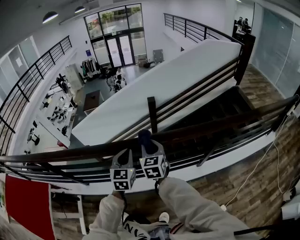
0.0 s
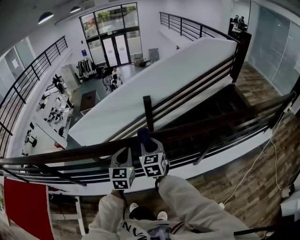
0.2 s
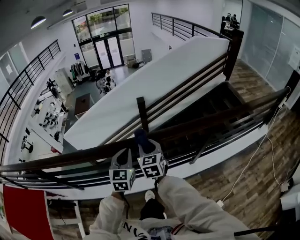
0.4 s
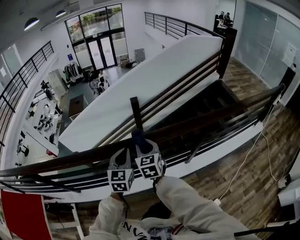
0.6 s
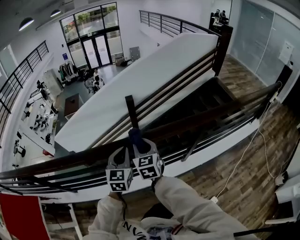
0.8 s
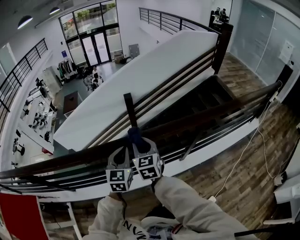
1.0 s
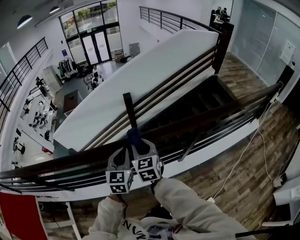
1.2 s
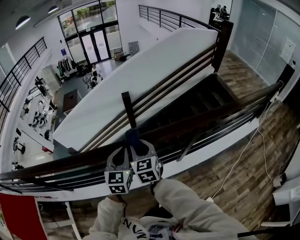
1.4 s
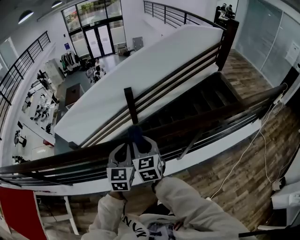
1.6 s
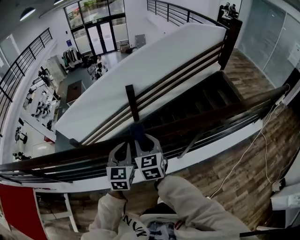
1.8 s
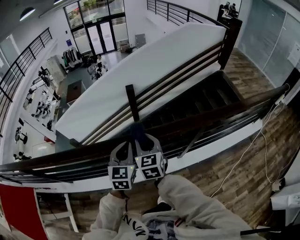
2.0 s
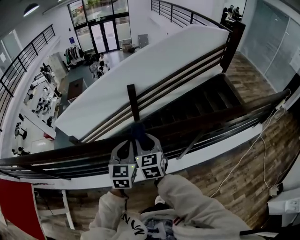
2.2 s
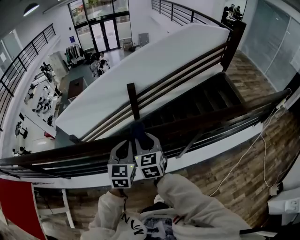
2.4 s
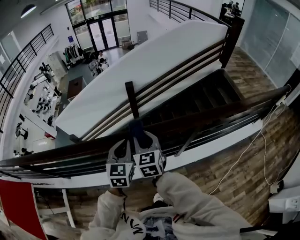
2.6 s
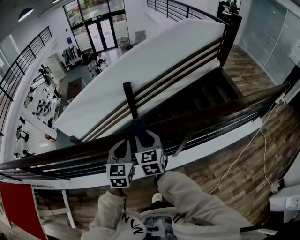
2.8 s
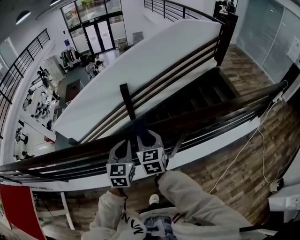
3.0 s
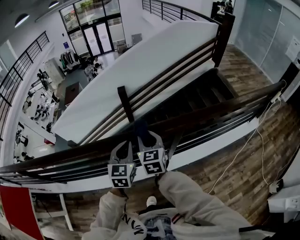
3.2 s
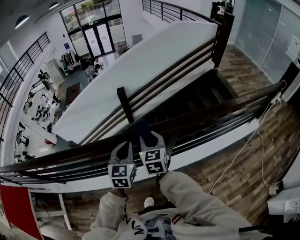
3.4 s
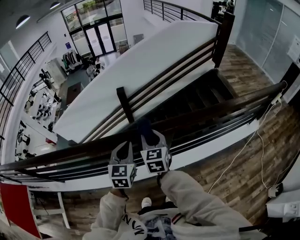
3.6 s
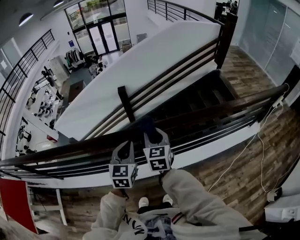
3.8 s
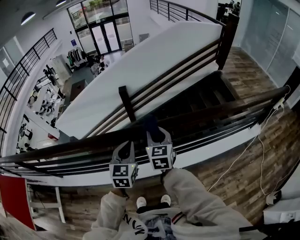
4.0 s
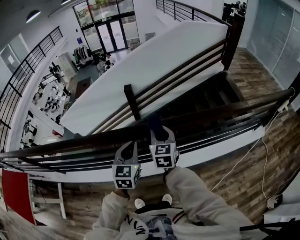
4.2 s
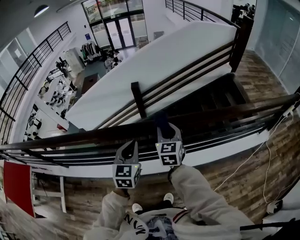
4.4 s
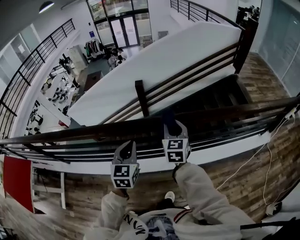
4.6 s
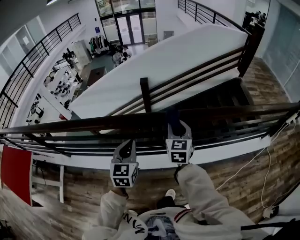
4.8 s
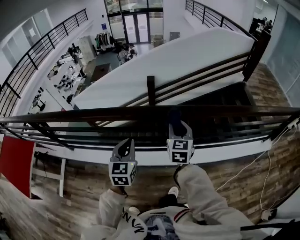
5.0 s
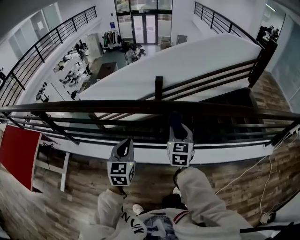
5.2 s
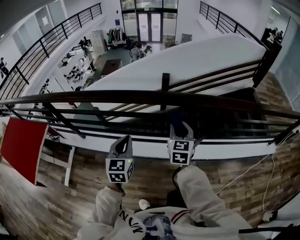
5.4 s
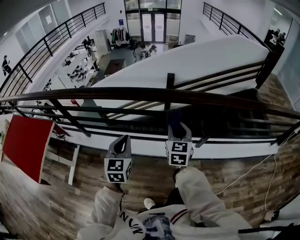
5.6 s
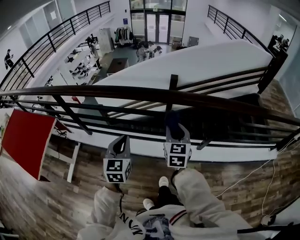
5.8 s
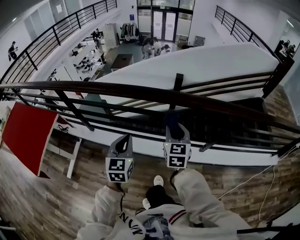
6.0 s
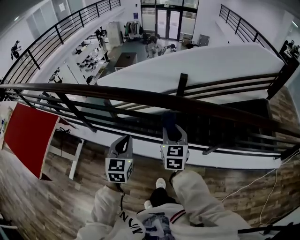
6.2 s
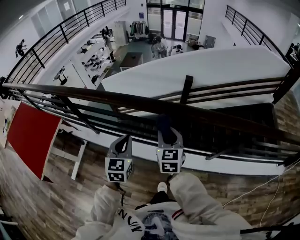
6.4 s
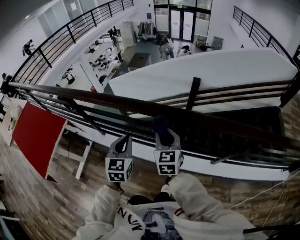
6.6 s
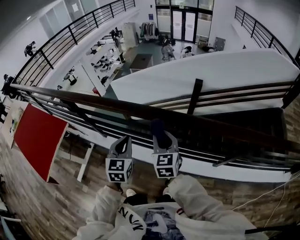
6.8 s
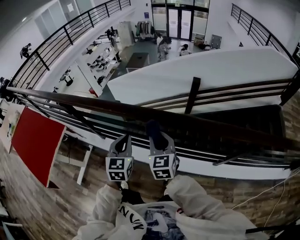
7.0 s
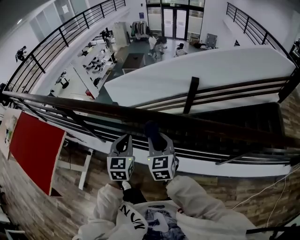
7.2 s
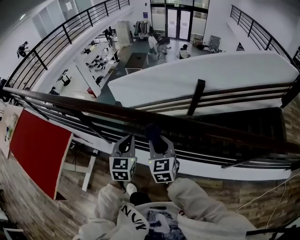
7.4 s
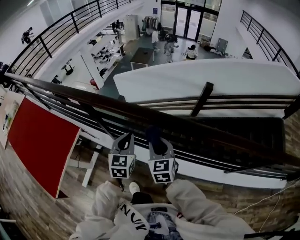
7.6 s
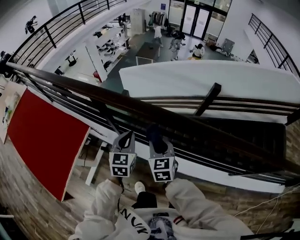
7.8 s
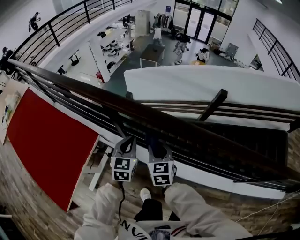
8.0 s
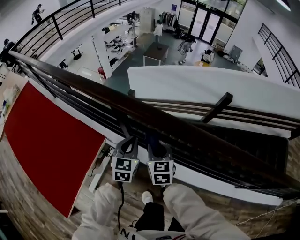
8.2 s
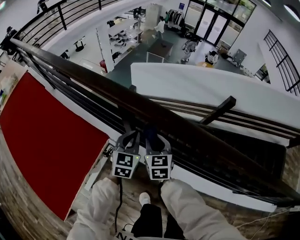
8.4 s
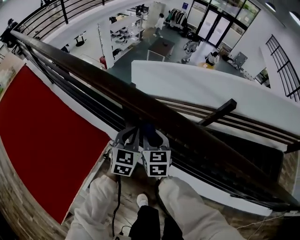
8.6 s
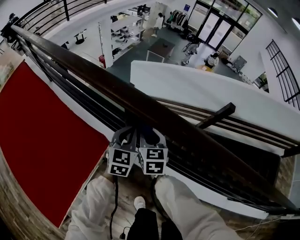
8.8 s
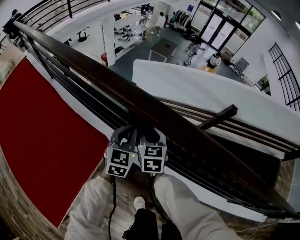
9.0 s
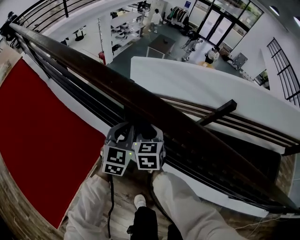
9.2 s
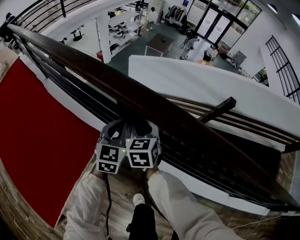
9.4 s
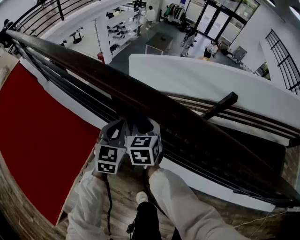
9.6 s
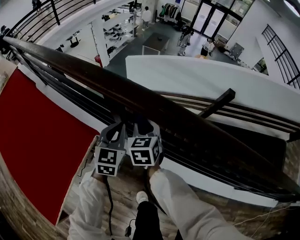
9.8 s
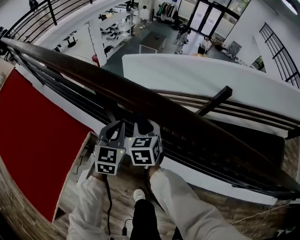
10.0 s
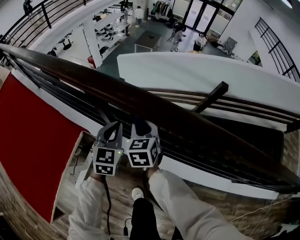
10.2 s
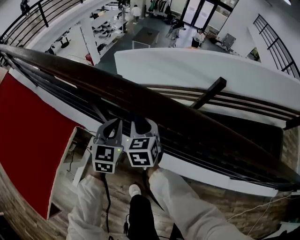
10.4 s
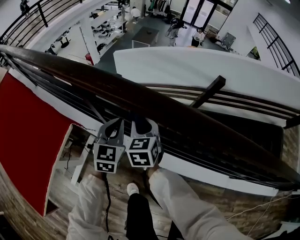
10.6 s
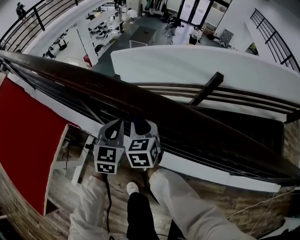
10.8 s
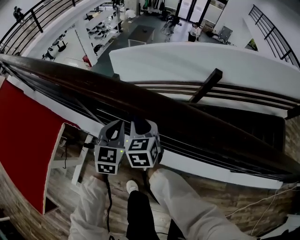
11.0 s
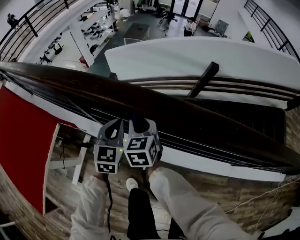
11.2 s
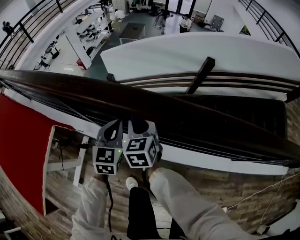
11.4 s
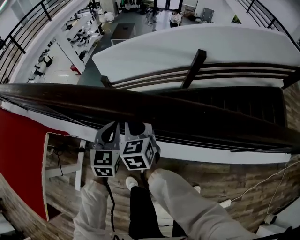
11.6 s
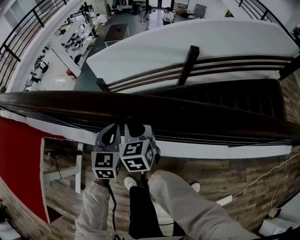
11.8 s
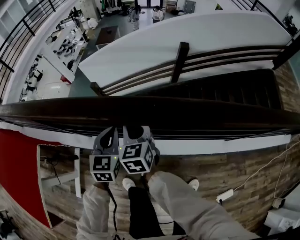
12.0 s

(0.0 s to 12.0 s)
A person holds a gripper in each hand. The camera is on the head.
0.0 s - 1.6 s: The two grippers go approximately 15 cm to the right.
1.6 s - 3.0 s: Both grippers move to the right, some 10 cm.
3.0 s - 4.4 s: The grippers both shift to the right by roughly 15 cm.
4.4 s - 6.0 s: The pair of grippers is taken to the left and backward, about 50 cm.
6.0 s - 7.6 s: The grippers both shift to the left and forward by some 35 cm. The right gripper changes its angle by roughly 20 degrees.
7.6 s - 9.0 s: Both grippers travel together to the left, forward and downward, roughly 40 cm.
9.0 s - 10.4 s: Both grippers move to the right and backward, roughly 15 cm.
10.4 s - 12.0 s: Both grippers move to the right, about 30 cm.

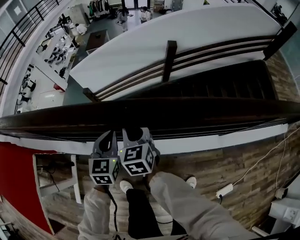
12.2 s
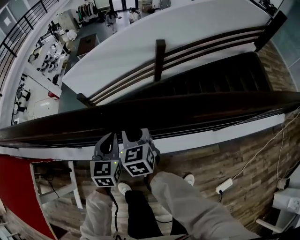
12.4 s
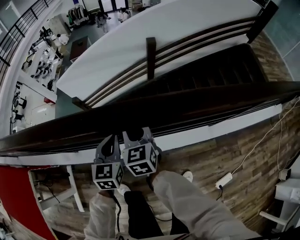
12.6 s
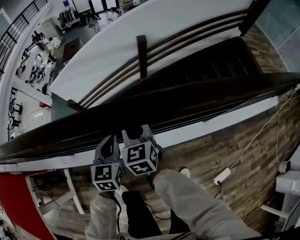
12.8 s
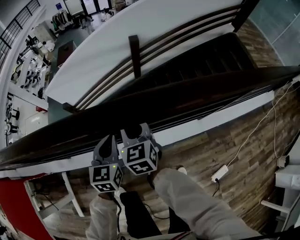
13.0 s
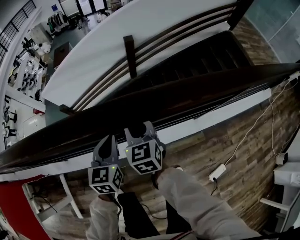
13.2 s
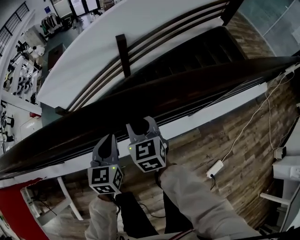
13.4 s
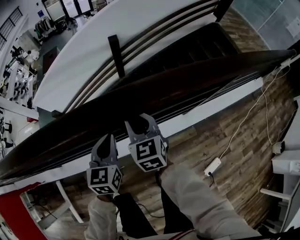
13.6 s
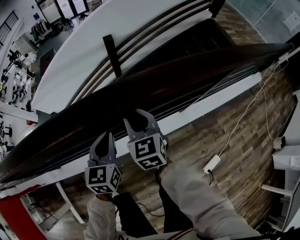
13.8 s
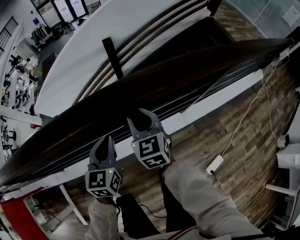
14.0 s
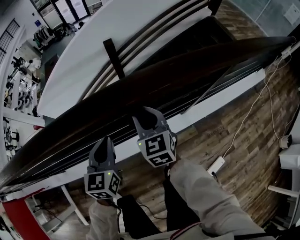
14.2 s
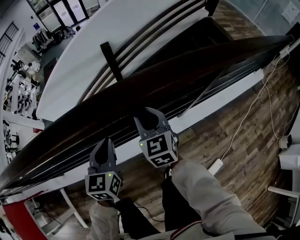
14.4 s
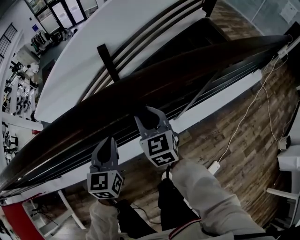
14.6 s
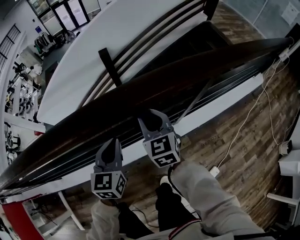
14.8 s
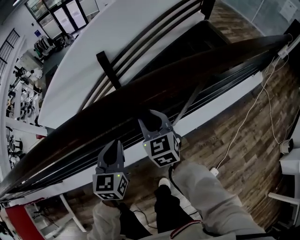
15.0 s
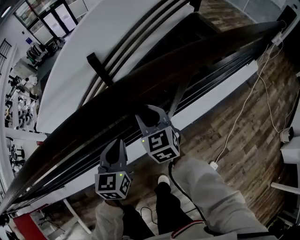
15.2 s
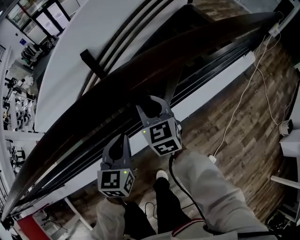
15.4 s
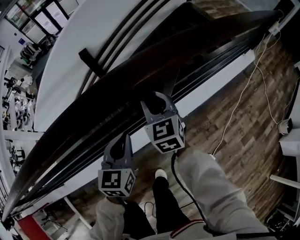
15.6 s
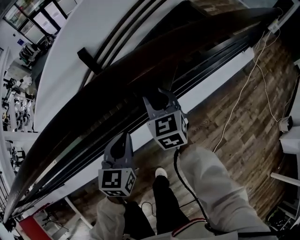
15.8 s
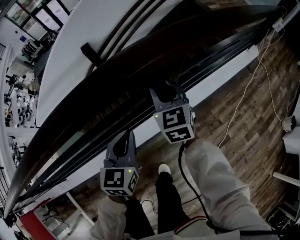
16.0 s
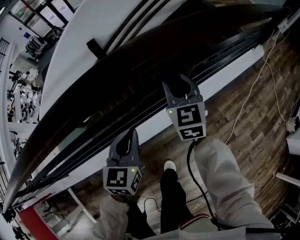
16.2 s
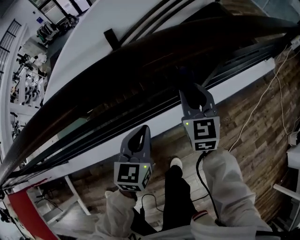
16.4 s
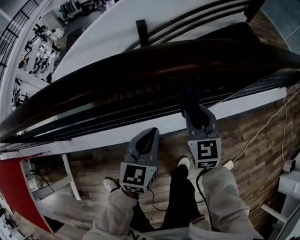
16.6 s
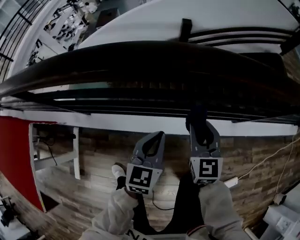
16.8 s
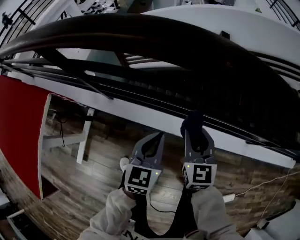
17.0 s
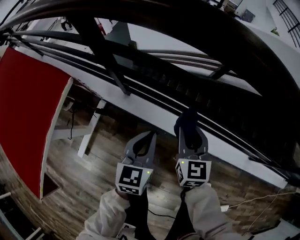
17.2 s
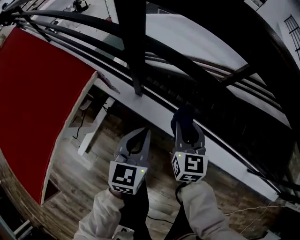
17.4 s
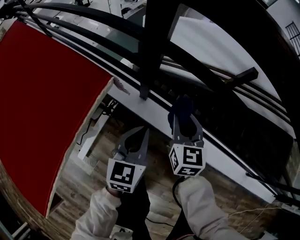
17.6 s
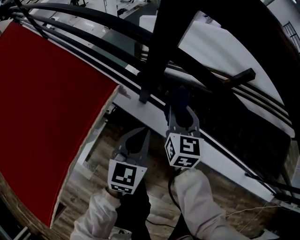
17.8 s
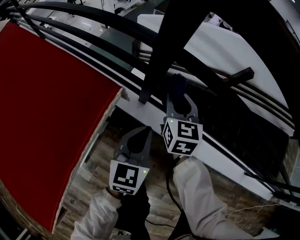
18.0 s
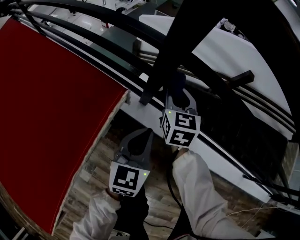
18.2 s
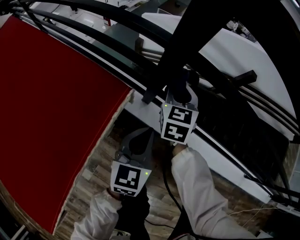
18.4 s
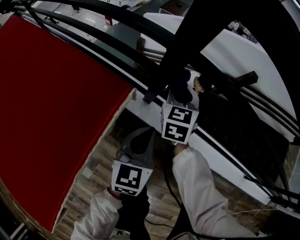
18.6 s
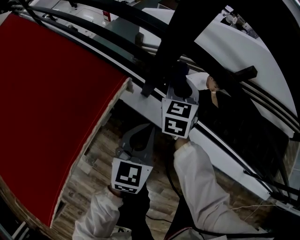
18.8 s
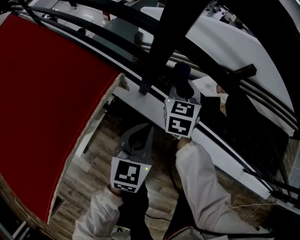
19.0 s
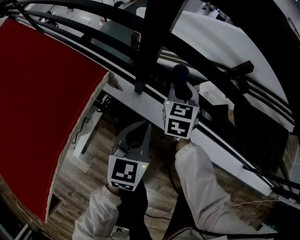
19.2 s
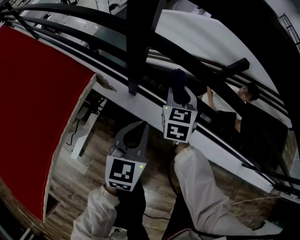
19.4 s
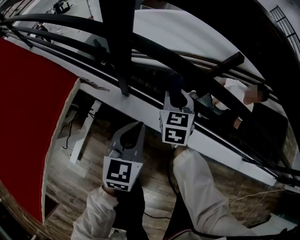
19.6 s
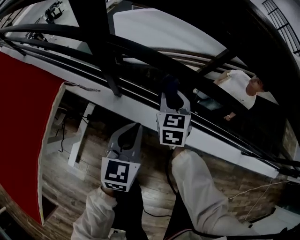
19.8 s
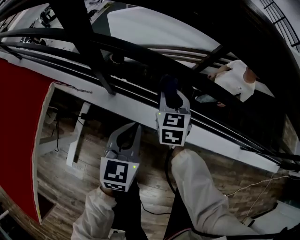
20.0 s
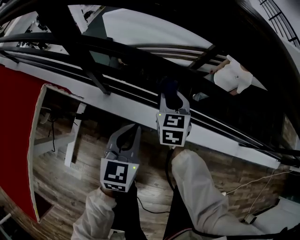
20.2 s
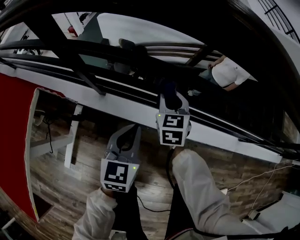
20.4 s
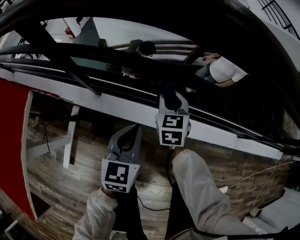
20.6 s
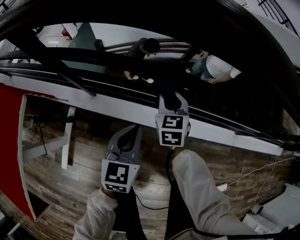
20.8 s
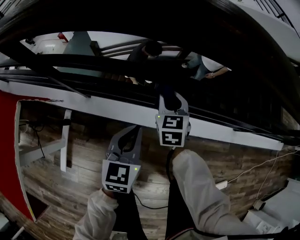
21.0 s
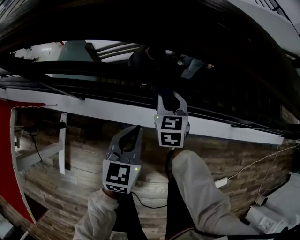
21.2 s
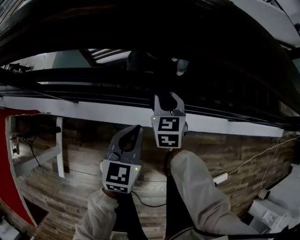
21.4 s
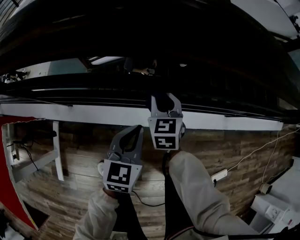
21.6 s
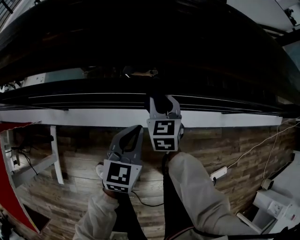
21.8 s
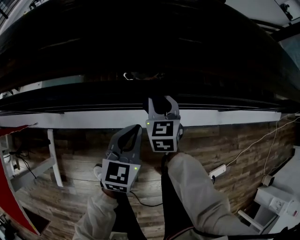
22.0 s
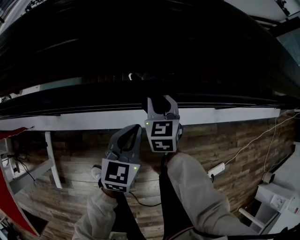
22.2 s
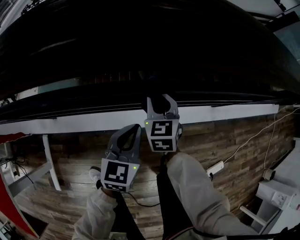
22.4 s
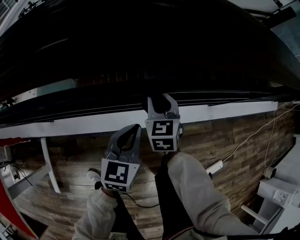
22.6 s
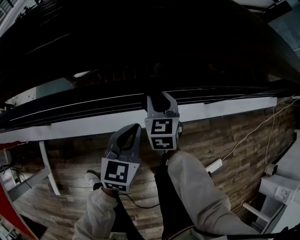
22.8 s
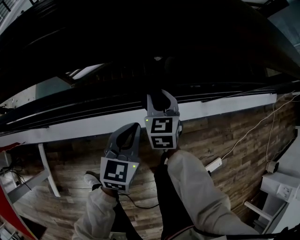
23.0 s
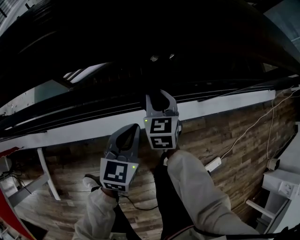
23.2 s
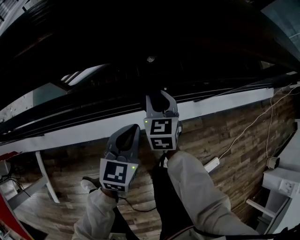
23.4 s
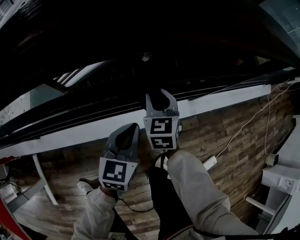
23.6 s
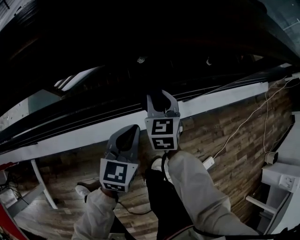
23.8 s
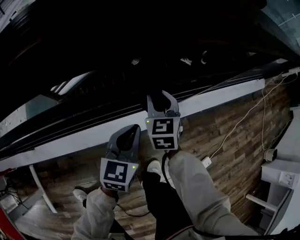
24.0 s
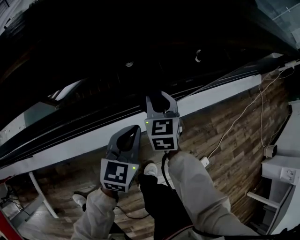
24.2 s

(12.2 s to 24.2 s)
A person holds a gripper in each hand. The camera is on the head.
12.2 s - 13.8 s: Both grippers move to the right, about 35 cm.
13.8 s - 15.2 s: The grippers both shift to the right by about 25 cm.
15.2 s - 16.6 s: Both grippers move to the left and backward, some 20 cm.
16.6 s - 18.2 s: The two grippers travel together, some 80 cm. The right gripper changes its angle by approximately 30 degrees. Meanwhile the left gripper rotates some 40 degrees.
18.2 s - 19.8 s: Both grippers move to the right, some 15 cm.
19.8 s - 21.2 s: The two grippers go approximately 25 cm to the right.
21.2 s - 22.6 s: Both grippers travel together to the right, about 25 cm.
22.6 s - 24.2 s: The left gripper moves to the right and forward, approximately 30 cm, while the right gripper shifts some 30 cm to the right.
